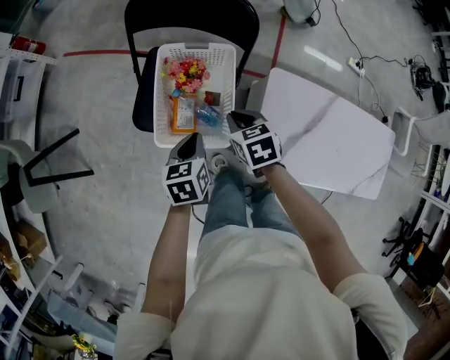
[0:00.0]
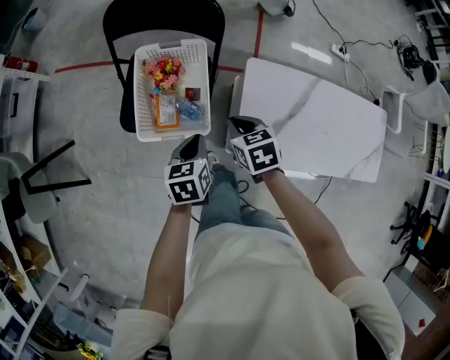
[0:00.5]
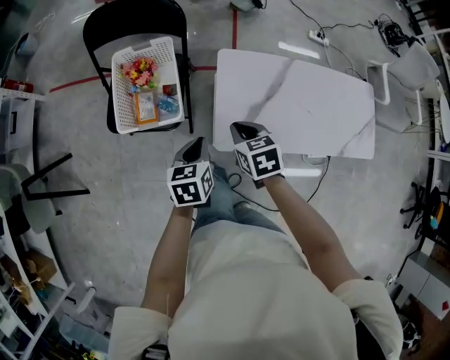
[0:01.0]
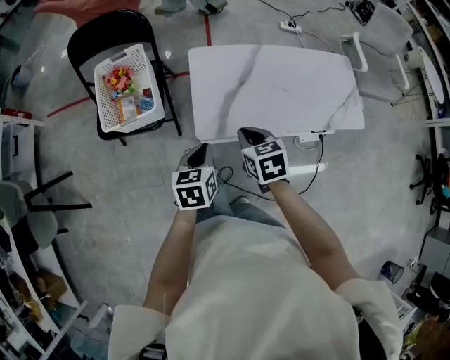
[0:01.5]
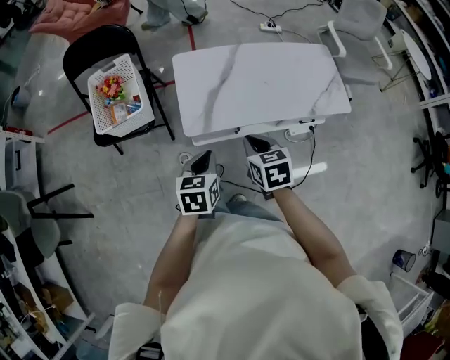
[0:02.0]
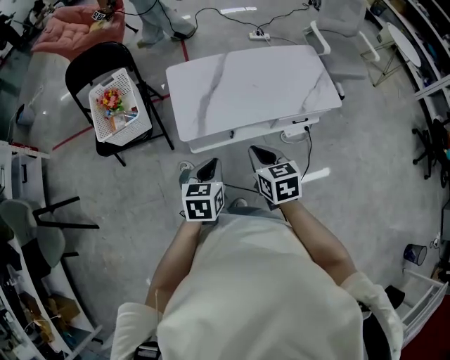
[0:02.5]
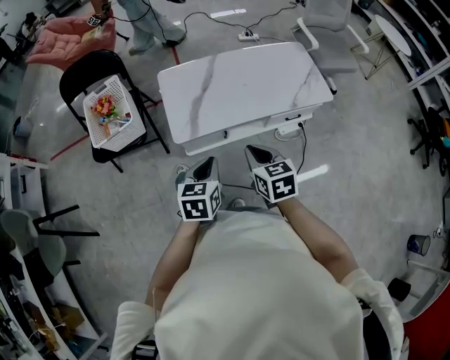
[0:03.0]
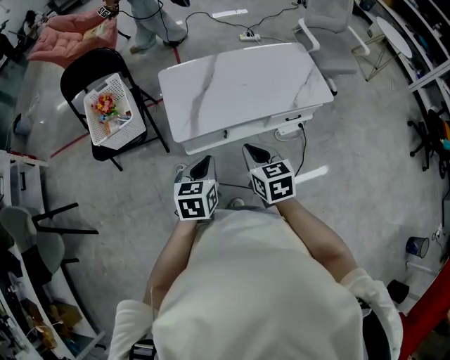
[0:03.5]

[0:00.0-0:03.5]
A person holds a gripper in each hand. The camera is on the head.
0:00.0 to 0:02.0: The pair of grippers is taken roughly 50 cm. The left gripper swivels some 30 degrees, while the right gripper swivels roughly 30 degrees.
0:02.0 to 0:03.5: Both grippers move backward and to the right, roughly 10 cm.

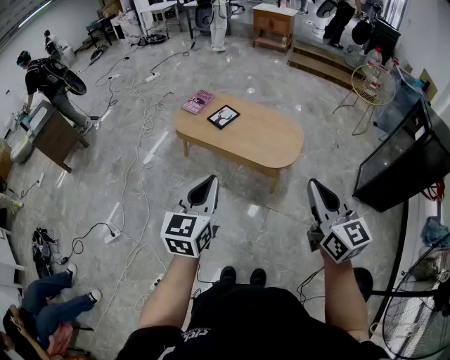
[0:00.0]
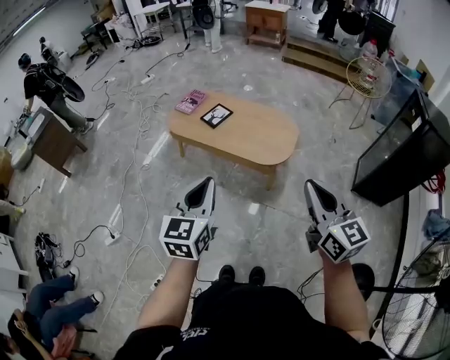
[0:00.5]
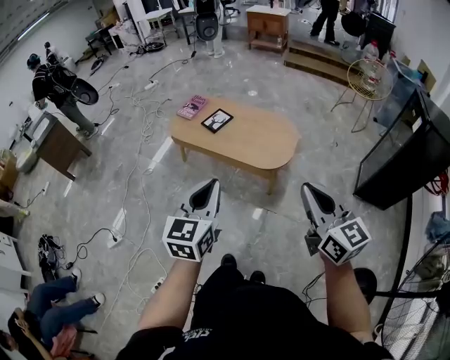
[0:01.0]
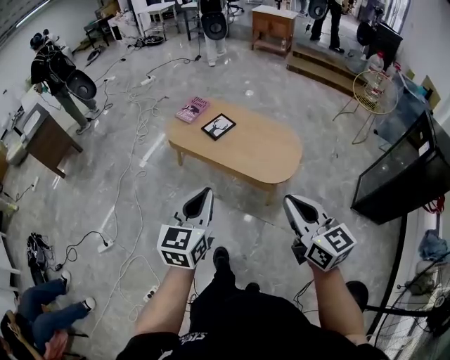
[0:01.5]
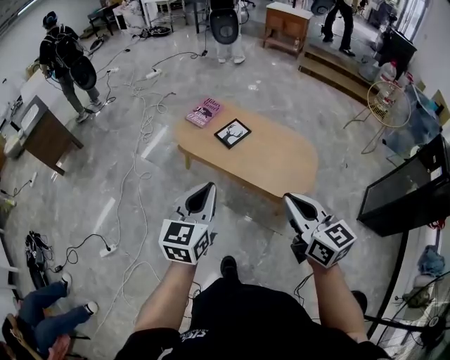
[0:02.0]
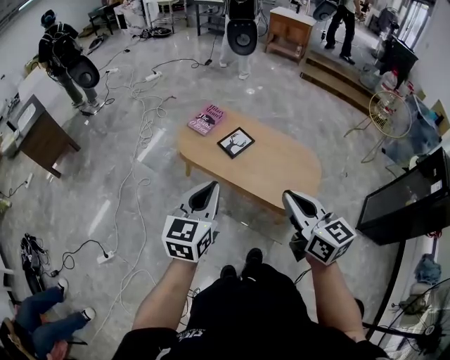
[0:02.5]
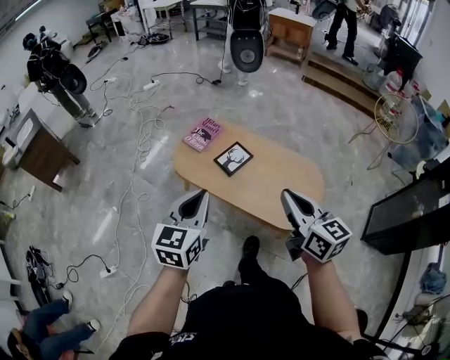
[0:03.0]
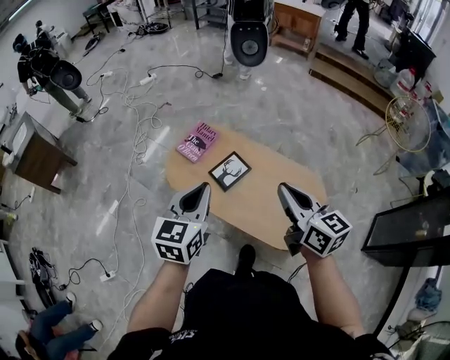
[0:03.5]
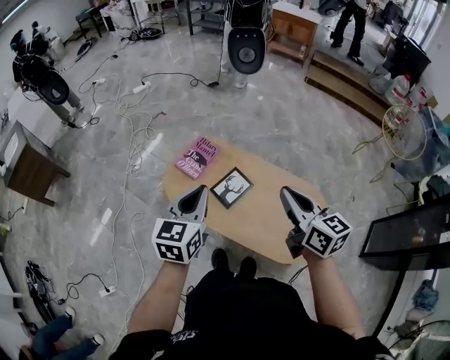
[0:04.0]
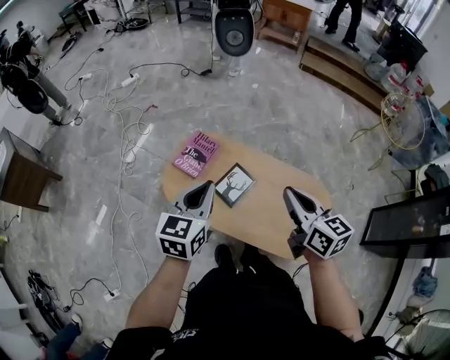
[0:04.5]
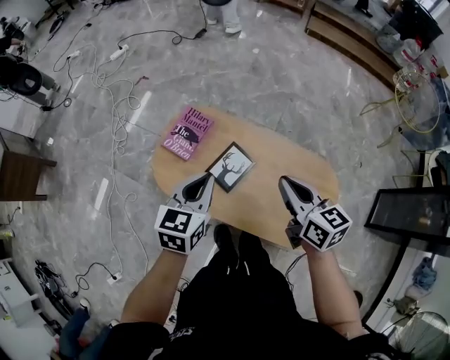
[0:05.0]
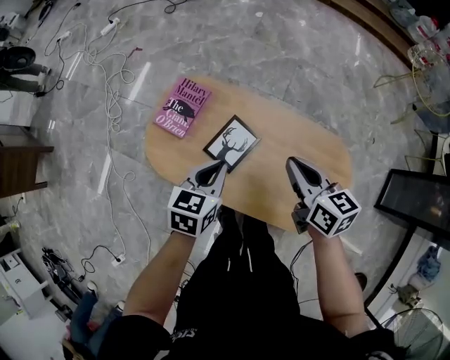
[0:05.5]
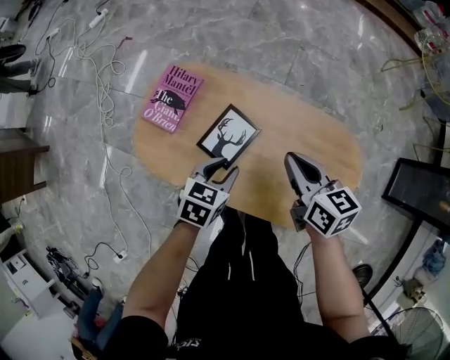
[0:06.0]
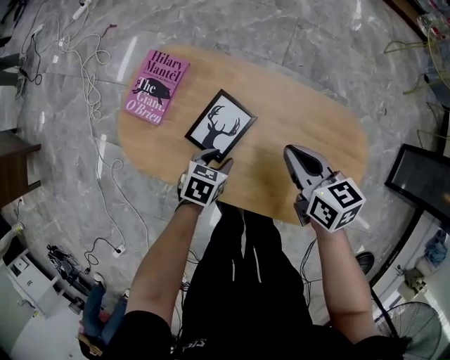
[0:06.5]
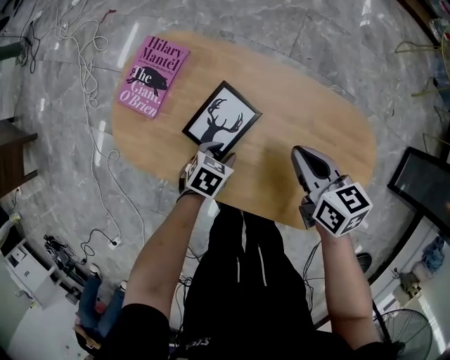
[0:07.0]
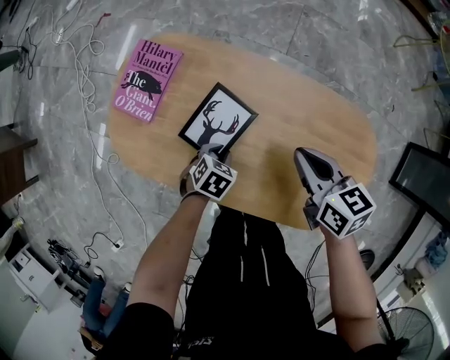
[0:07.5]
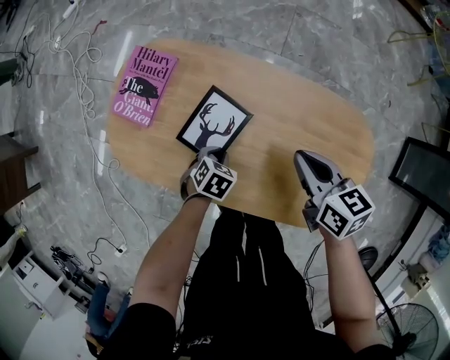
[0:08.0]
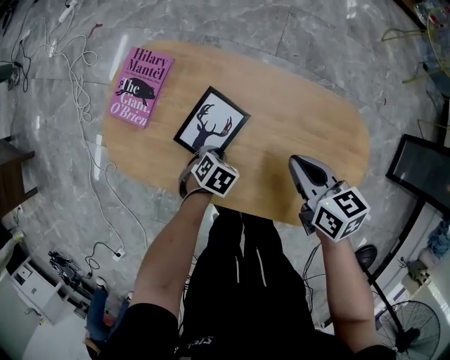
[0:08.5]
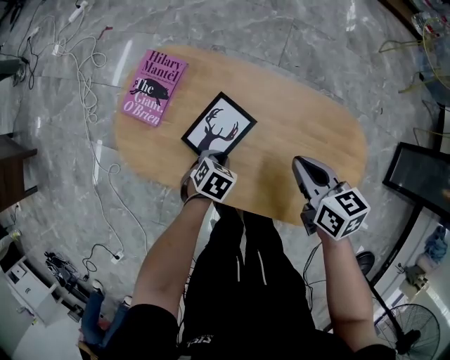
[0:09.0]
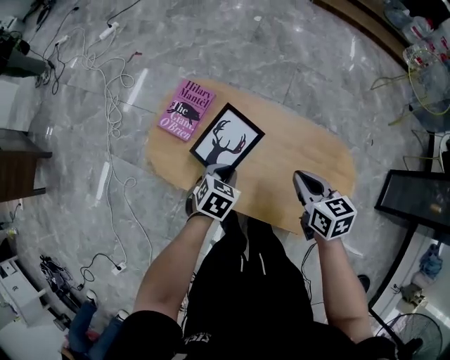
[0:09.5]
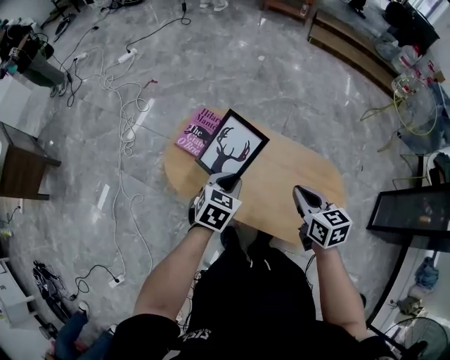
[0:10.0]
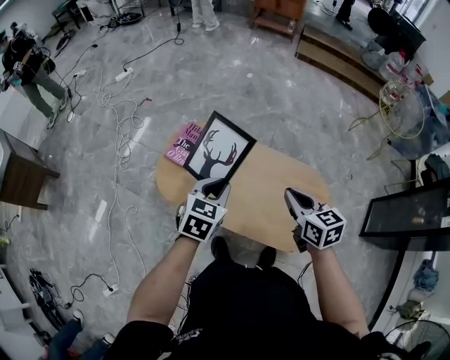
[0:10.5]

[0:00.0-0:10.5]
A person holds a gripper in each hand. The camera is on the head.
0:00.0 to 0:02.0: The left gripper shifts some 20 cm forward; the right gripper shifts roughly 25 cm forward and to the left.
0:02.0 to 0:04.0: Both grippers are carried forward, some 40 cm.
0:04.0 to 0:06.5: The left gripper is displaced downward by approximately 50 cm, tips its fingers downward by some 40 degrees, and opens up, while the right gripper travels downward and forward by about 40 cm, and swivels some 20 degrees.
0:06.5 to 0:08.5: The right gripper moves roughly 5 cm, while the left gripper heads downward, covering some 10 cm, swivels some 20 degrees, and closes up.
0:08.5 to 0:10.5: The right gripper moves upward, about 30 cm. Meanwhile the left gripper goes about 50 cm upward, and points its fingers approximately 40 degrees further upward.

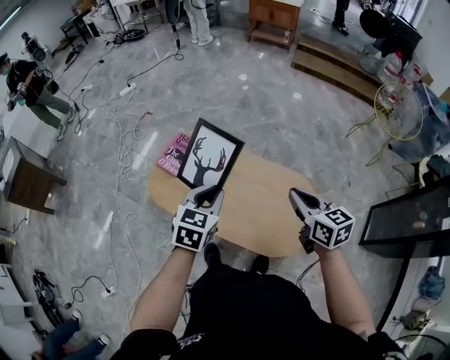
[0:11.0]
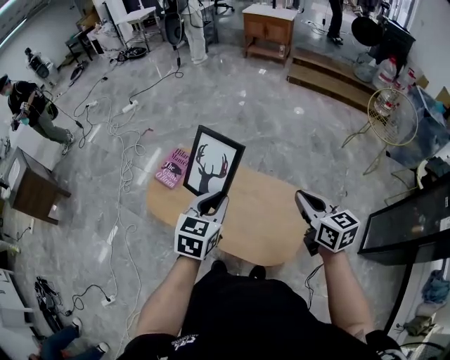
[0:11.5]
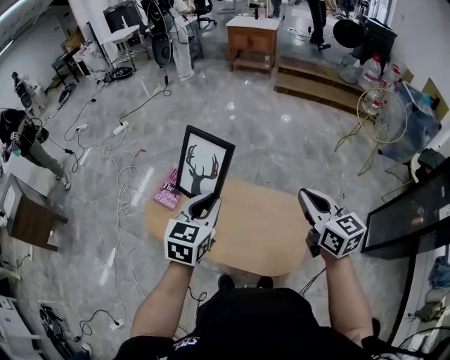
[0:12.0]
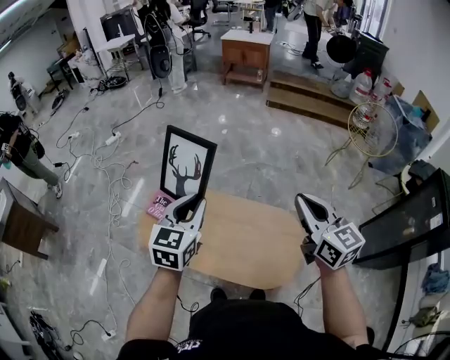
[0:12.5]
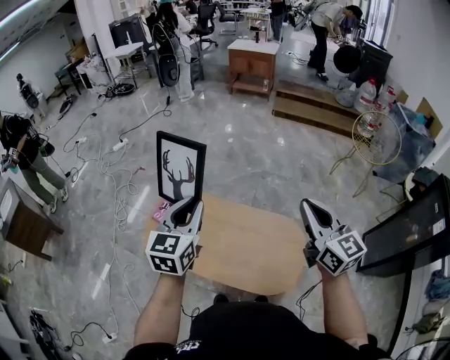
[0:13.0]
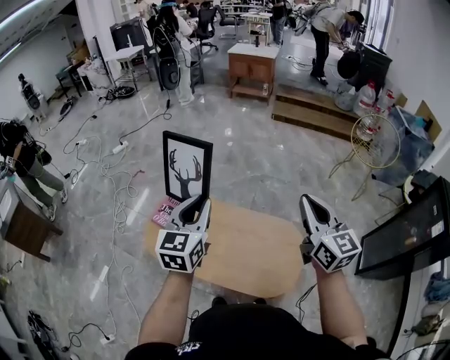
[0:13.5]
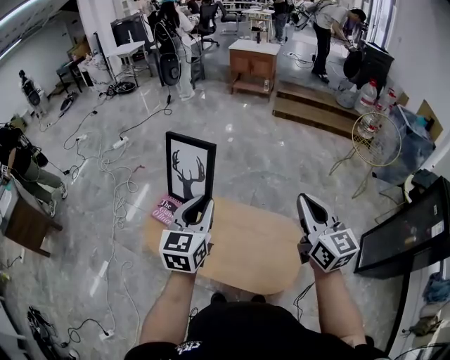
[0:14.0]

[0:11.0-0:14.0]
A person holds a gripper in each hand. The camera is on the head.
0:11.0 to 0:12.5: The left gripper moves upward, about 10 cm; the right gripper is displaced upward and to the right by about 15 cm, and rotates roughly 20 degrees.
0:12.5 to 0:14.0: The left gripper reaches some 5 cm to the left, then returns.

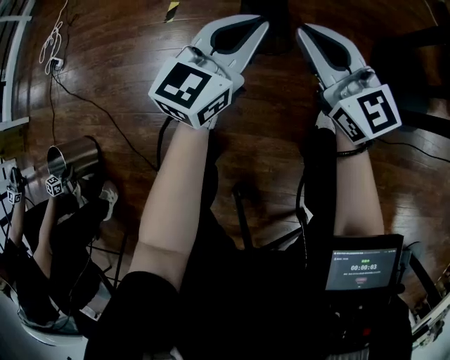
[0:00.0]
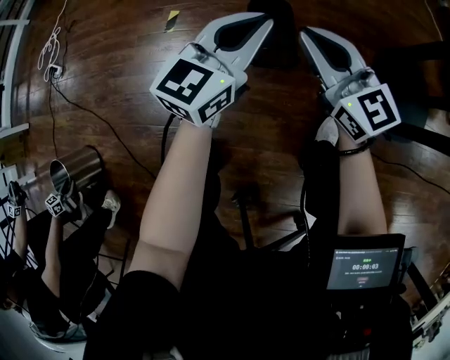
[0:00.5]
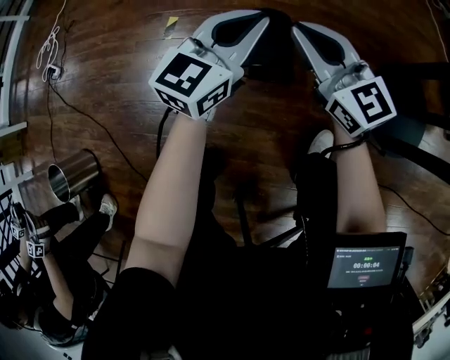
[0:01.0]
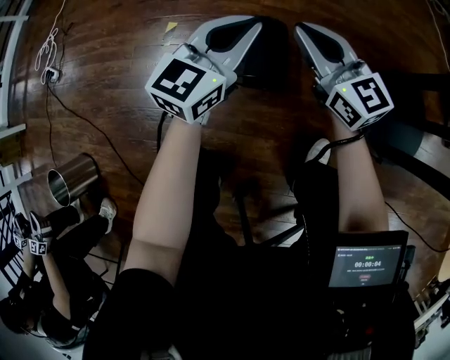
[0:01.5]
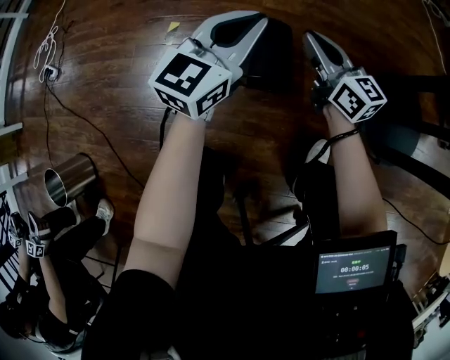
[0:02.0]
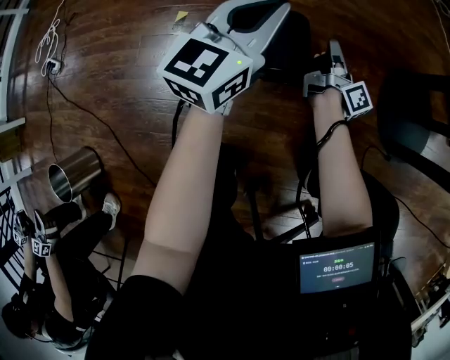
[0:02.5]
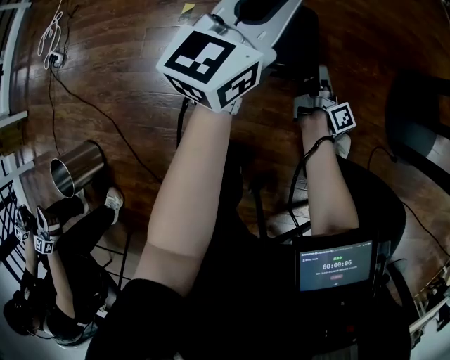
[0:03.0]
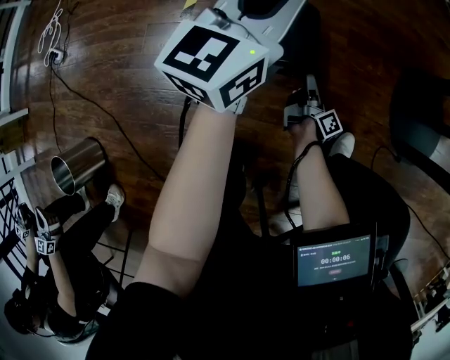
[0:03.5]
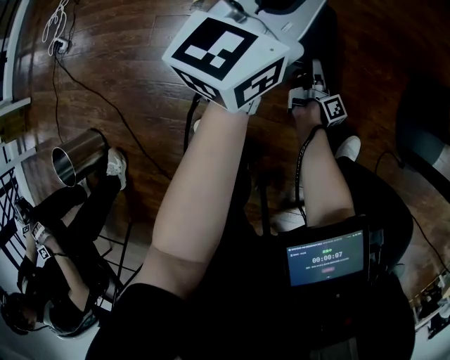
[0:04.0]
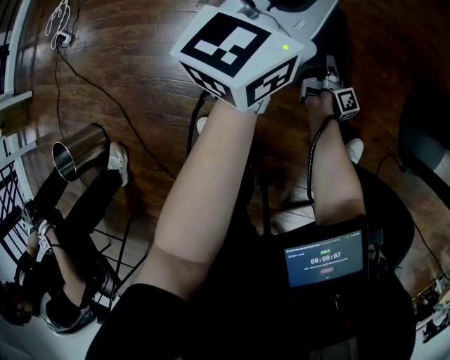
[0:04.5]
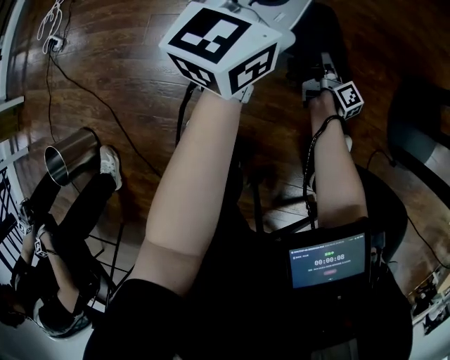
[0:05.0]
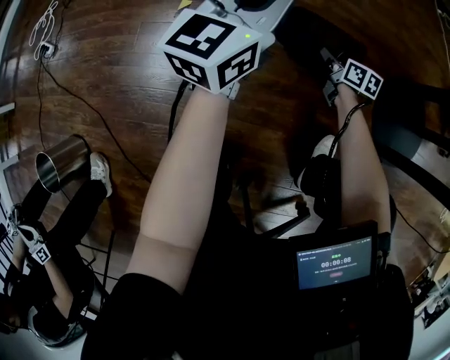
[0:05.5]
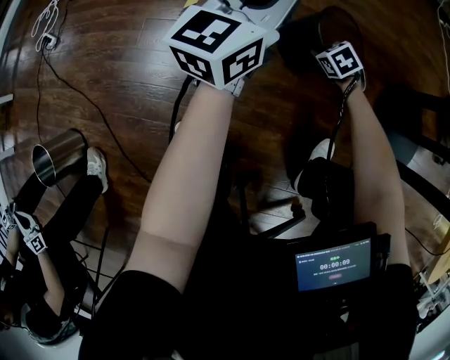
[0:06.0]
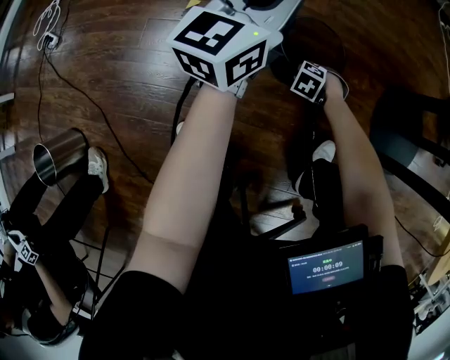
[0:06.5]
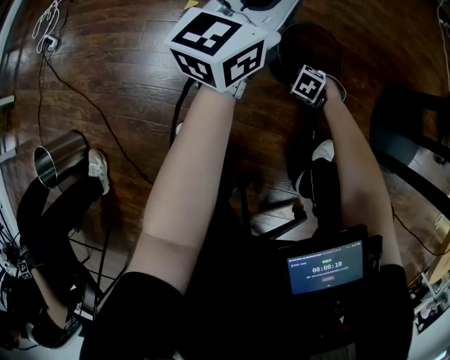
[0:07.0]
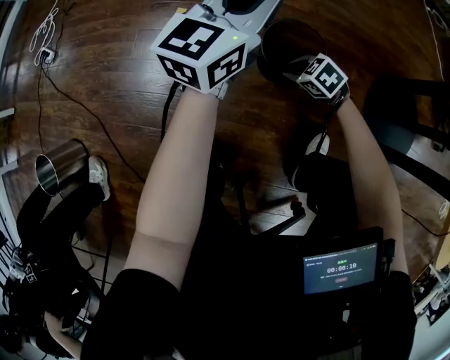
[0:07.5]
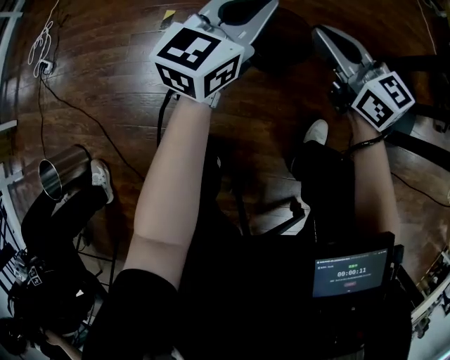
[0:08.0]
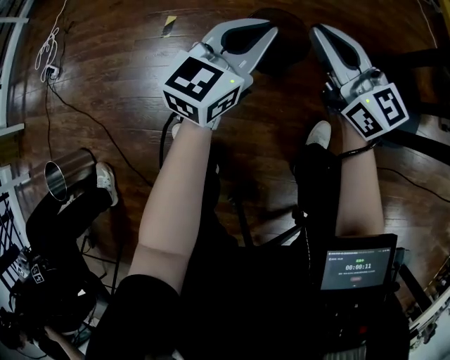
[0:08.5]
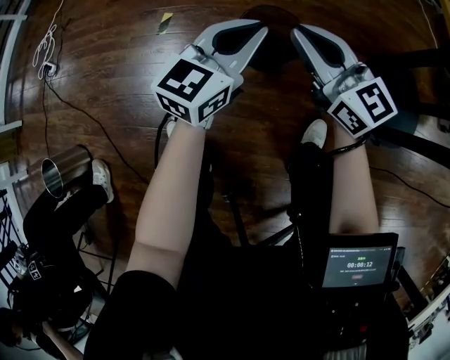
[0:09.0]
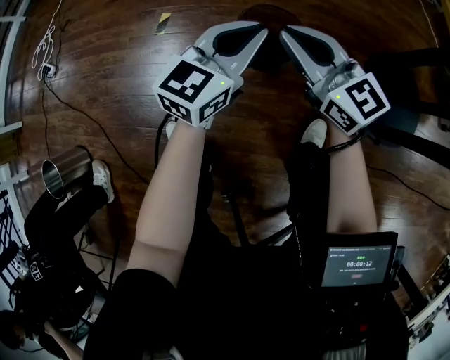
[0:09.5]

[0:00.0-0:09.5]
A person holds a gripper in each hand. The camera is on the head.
0:00.0 to 0:02.0: The left gripper moves forward, approximately 15 cm. Meanwhile the right gripper goes roughly 20 cm forward and downward, and changes its angle by about 20 degrees.
0:02.0 to 0:04.0: The right gripper travels downward by some 30 cm, rotates around the line of its fingers by about 70 degrees, clockwise from behind, and opens its fingers.
0:04.0 to 0:05.5: The right gripper heads upward and forward, covering some 15 cm, rotates around the line of its fingers by some 60 degrees, counterclockwise from behind, and closes.
0:05.5 to 0:07.5: The right gripper moves approximately 10 cm downward and comes back, and twists approximately 50 degrees counterclockwise, seen from behind.
0:07.5 to 0:09.5: The right gripper moves upward, about 25 cm, and points its fingers about 60 degrees further upward, while the left gripper moves backward, downward and to the right, approximately 15 cm.
